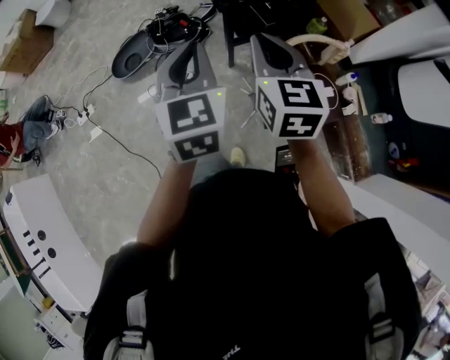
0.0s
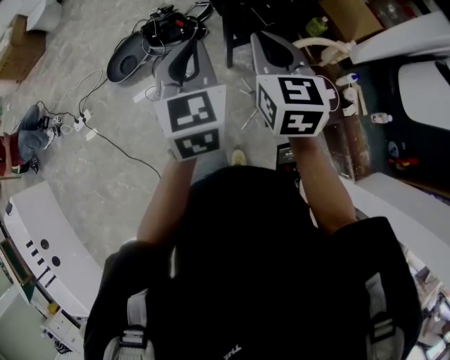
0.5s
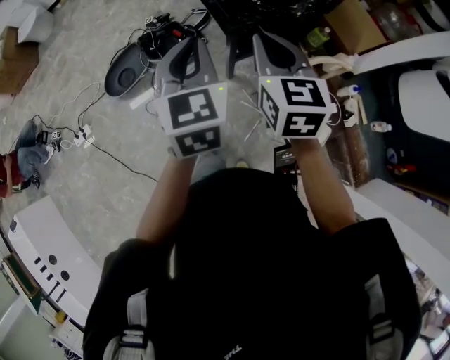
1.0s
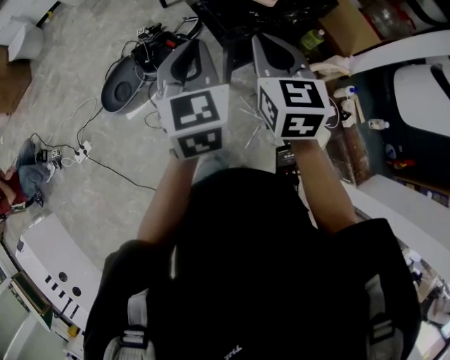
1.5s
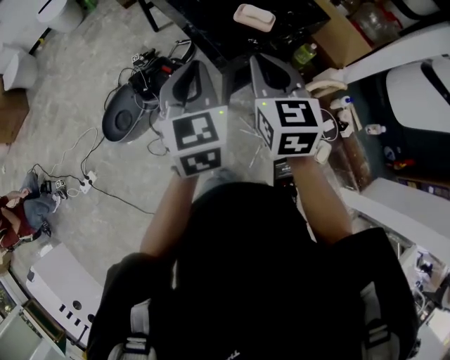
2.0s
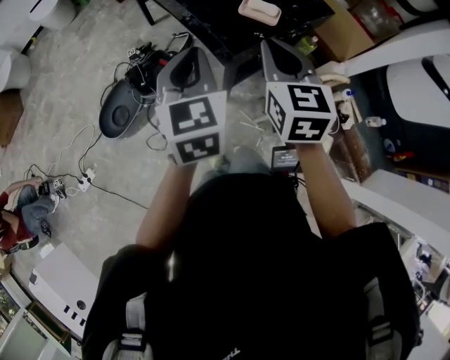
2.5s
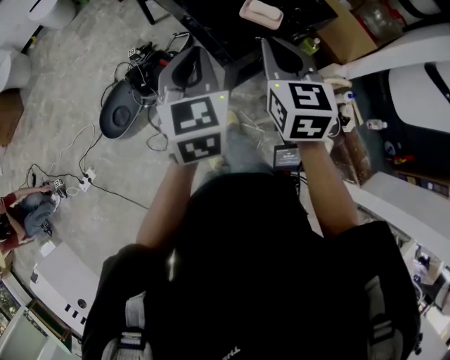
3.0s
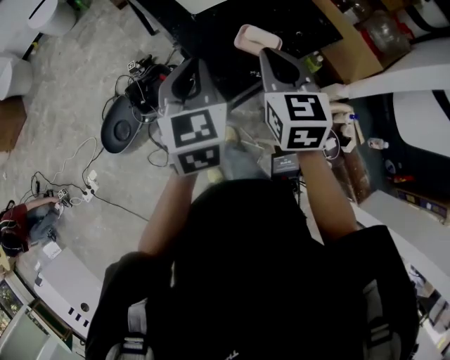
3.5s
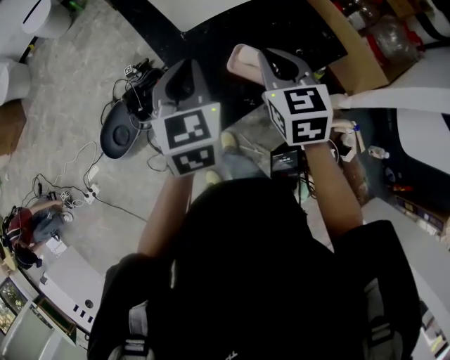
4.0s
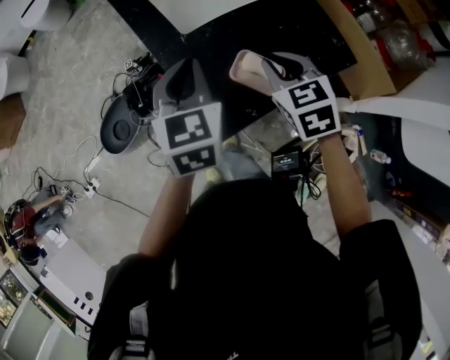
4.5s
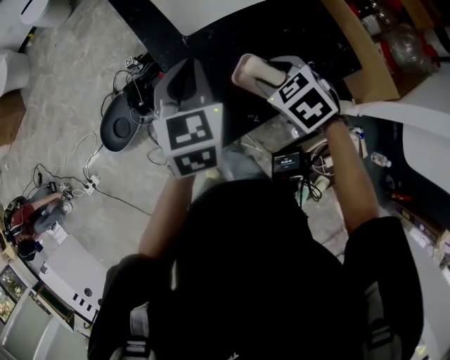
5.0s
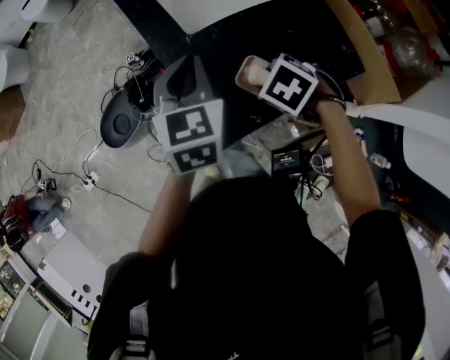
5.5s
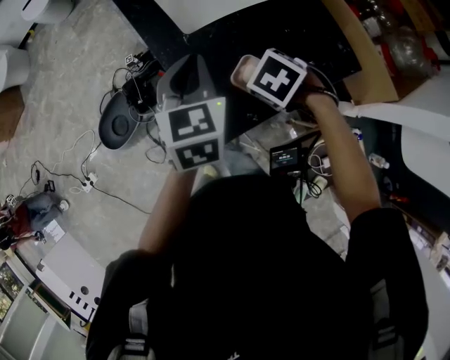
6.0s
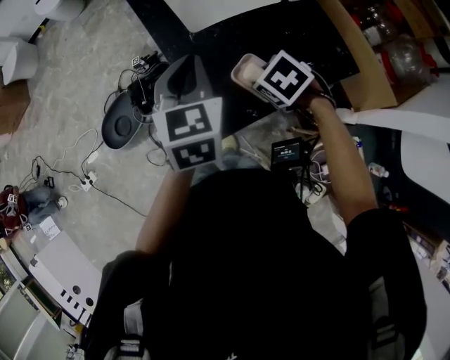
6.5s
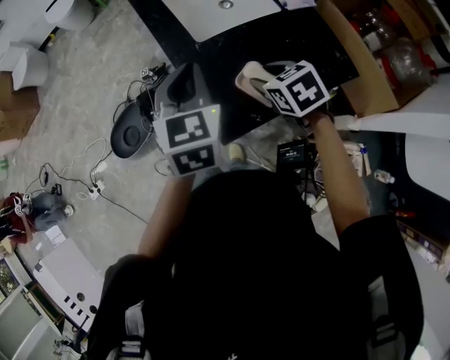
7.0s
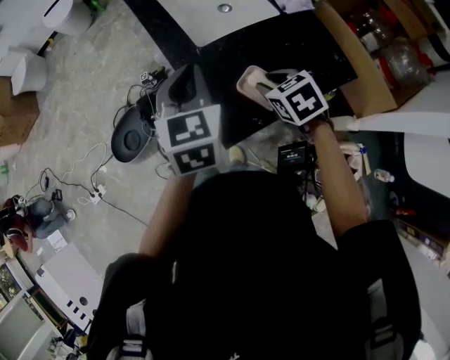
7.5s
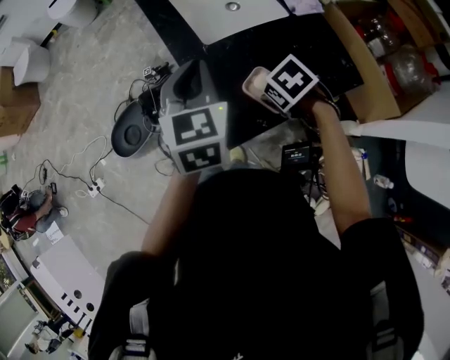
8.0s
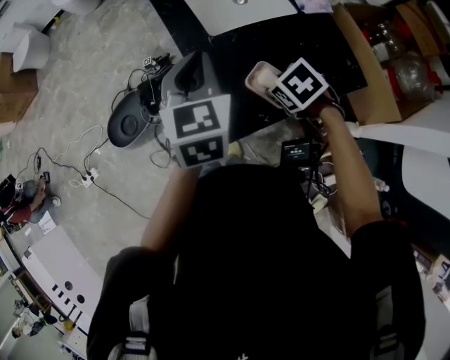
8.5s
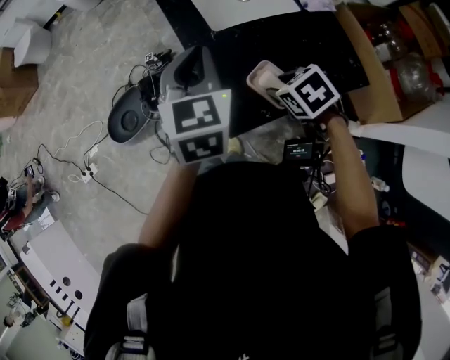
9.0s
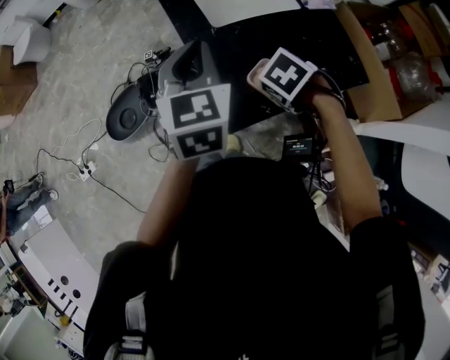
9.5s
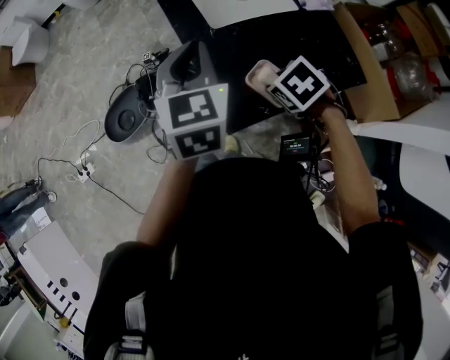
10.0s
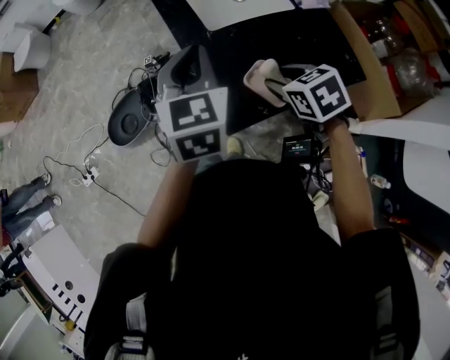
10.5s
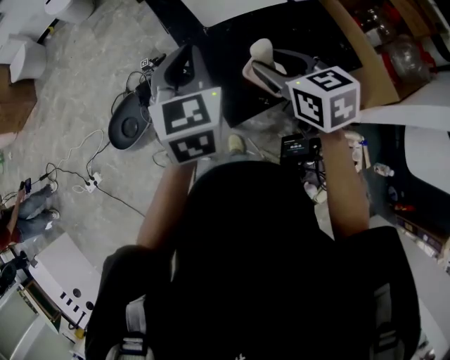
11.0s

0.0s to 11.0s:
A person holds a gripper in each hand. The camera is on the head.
0.0s to 2.0s: Both grippers travel together forward, roughly 30 cm.
2.0s to 3.5s: The two grippers go roughly 15 cm forward.
3.5s to 5.5s: The right gripper travels downward by some 20 cm, tips its fingers downward by roughly 60 degrees, and opens. Meanwhile the left gripper changes place by approximately 20 cm.
5.5s to 7.5s: The right gripper rotates roughly 30 degrees. Meanwhile the left gripper changes place by about 5 cm.
9.0s to 11.0s: The right gripper shifts some 10 cm upward, and points its fingers roughly 30 degrees further upward.

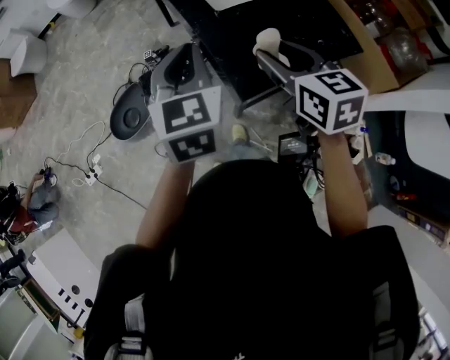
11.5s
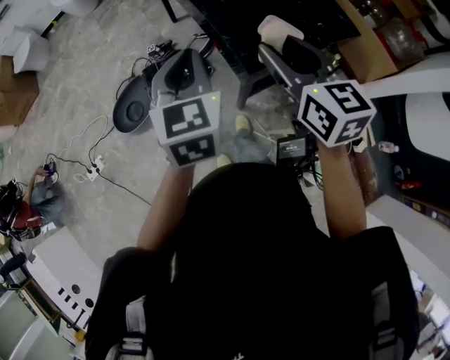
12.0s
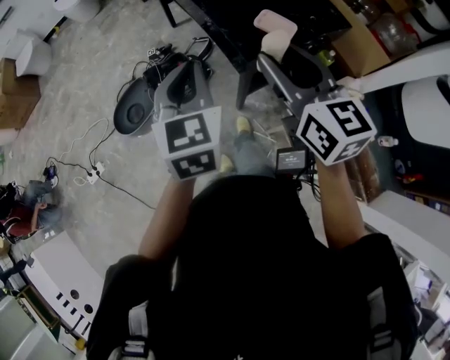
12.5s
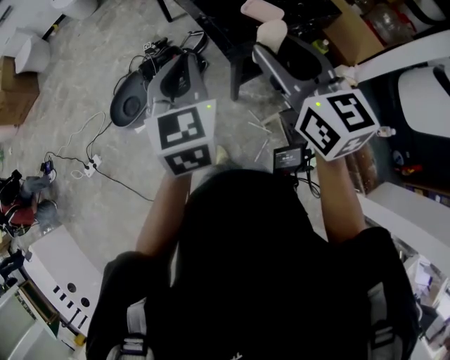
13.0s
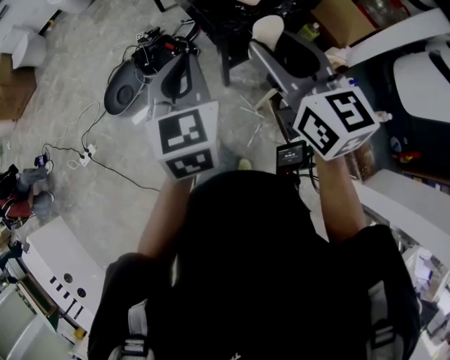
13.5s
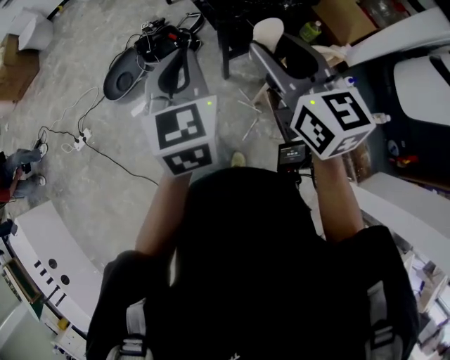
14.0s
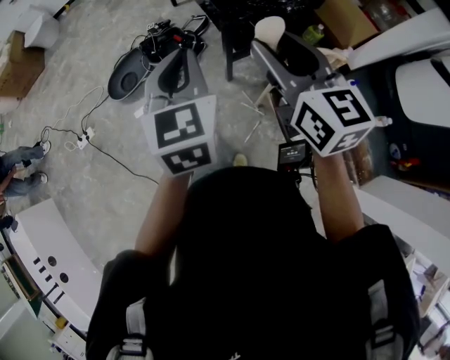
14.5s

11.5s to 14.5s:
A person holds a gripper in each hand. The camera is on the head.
11.5s to 13.0s: Both grippers move backward, some 25 cm.
13.0s to 14.5s: The two grippers go approximately 15 cm backward.

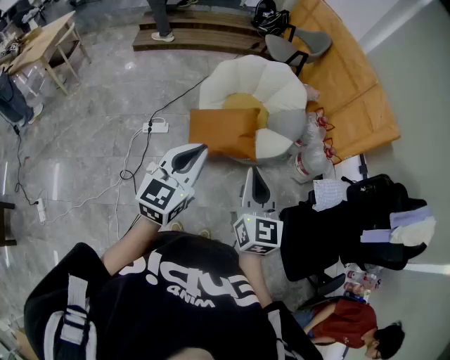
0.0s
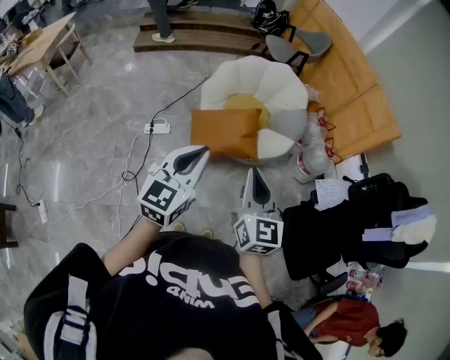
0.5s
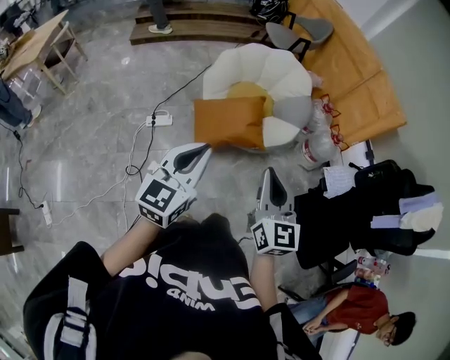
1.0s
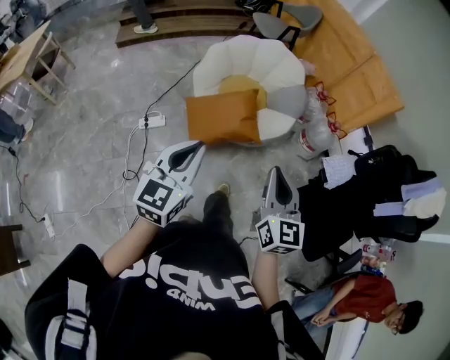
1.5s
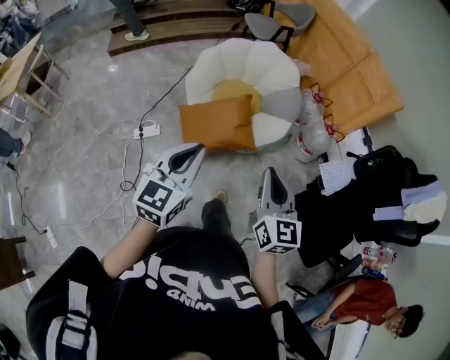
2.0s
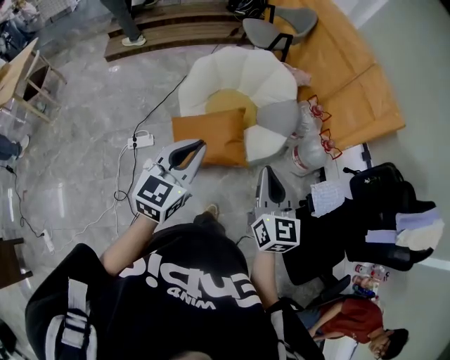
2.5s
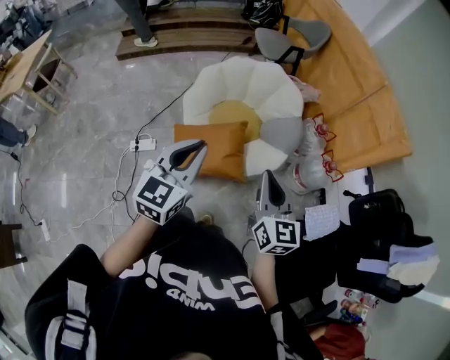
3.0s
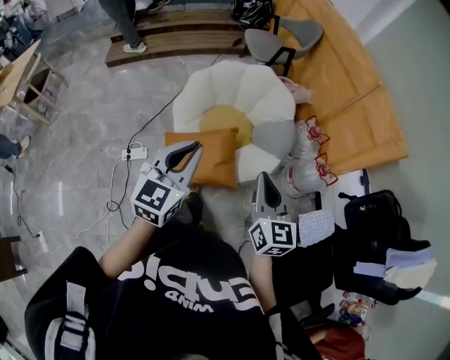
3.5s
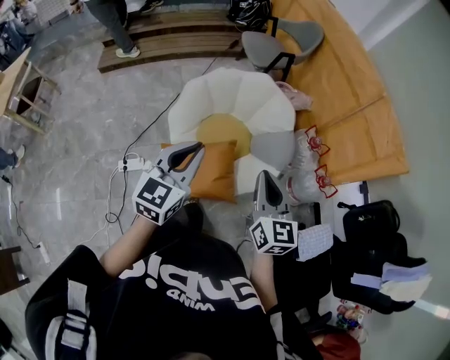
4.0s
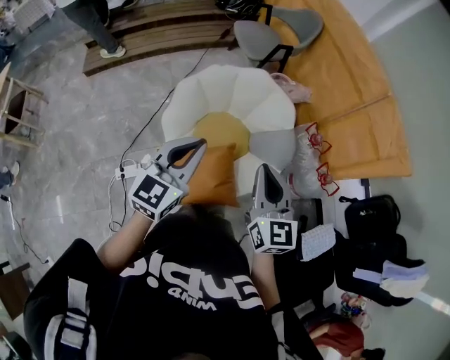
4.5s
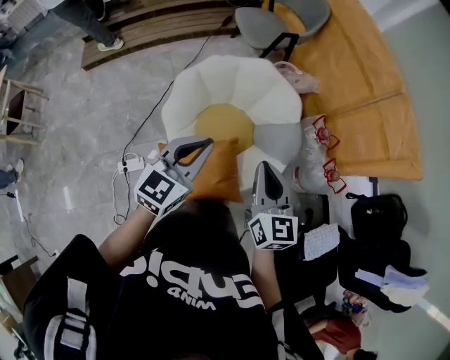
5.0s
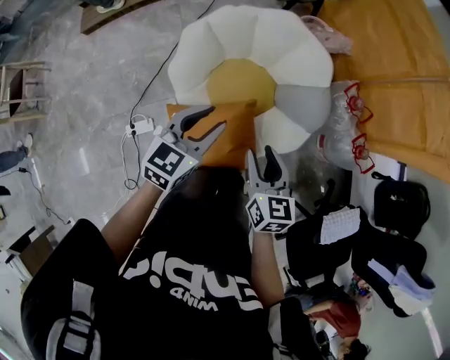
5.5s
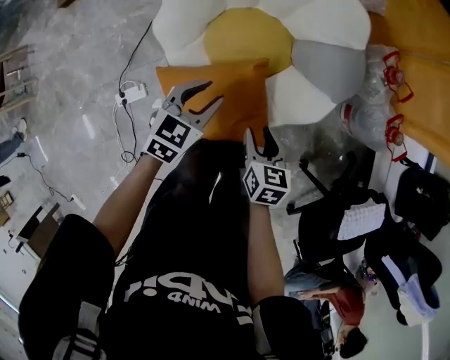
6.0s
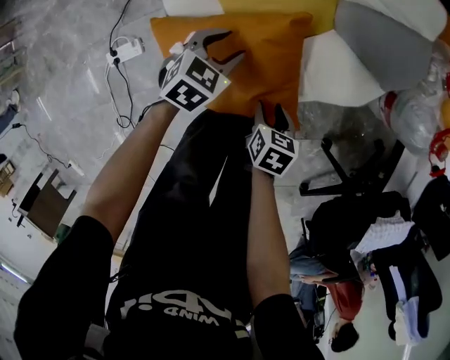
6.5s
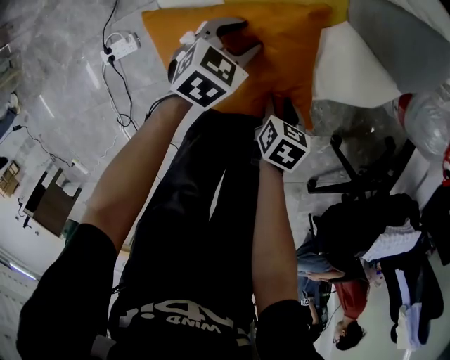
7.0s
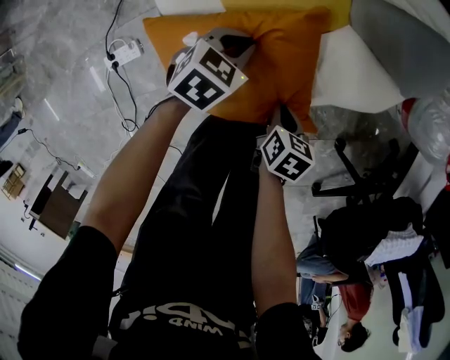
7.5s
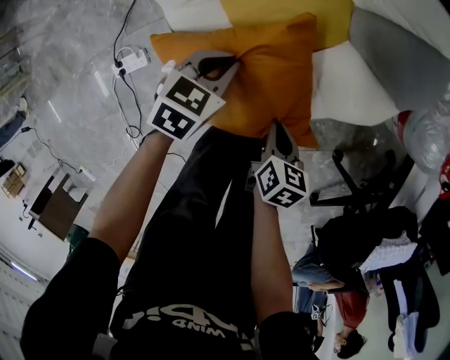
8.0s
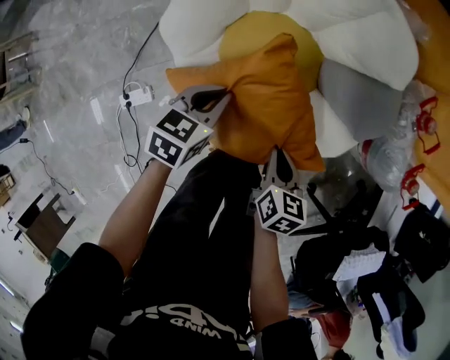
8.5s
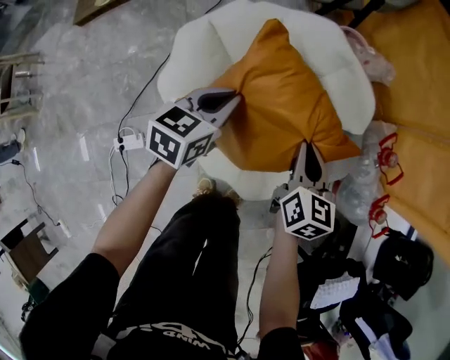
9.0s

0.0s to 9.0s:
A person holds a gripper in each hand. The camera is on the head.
0.0s to 2.0s: Both grippers travel together forward, approximately 5 cm.
2.0s to 4.5s: Both grippers are carried forward, about 50 cm.
4.5s to 7.0s: The grippers both shift downward by approximately 70 cm. The right gripper tips its fingers downward by about 60 degrees, and opens its fingers, while the left gripper angles its fingers downward, by roughly 50 degrees, and opens its fingers.
7.0s to 9.0s: Both grippers travel together upward and forward, approximately 40 cm. The right gripper angles its fingers upward, by about 40 degrees, and closes its fingers. Meanwhile the left gripper changes its angle by about 30 degrees, and closes its fingers.

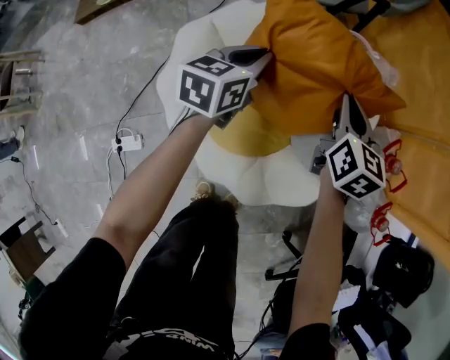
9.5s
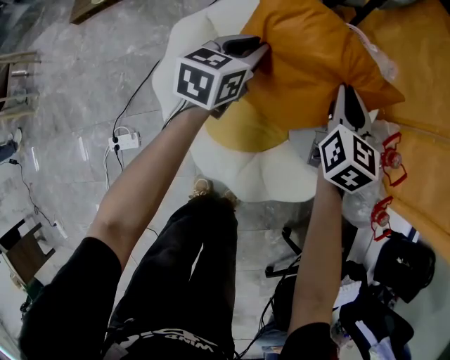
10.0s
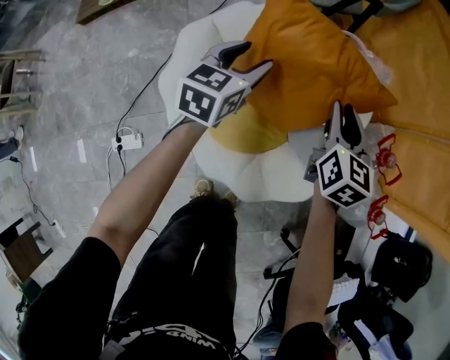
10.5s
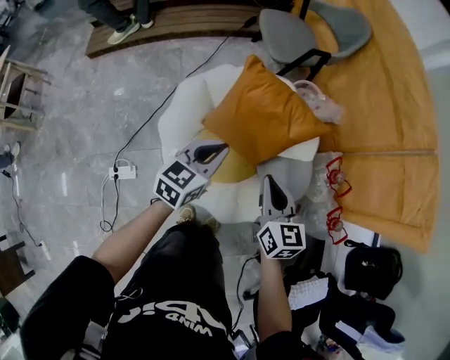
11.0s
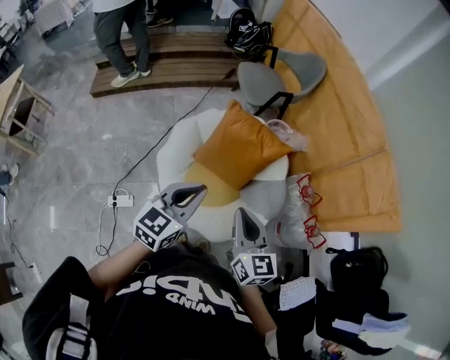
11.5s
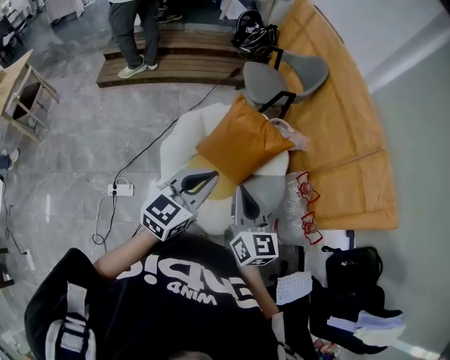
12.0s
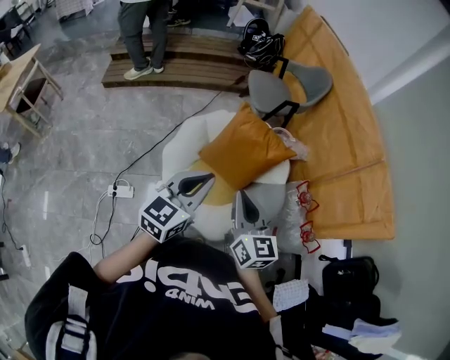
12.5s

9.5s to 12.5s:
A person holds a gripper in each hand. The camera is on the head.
9.5s to 11.0s: Both grippers move backward and upward, roughly 25 cm. The right gripper opens, then closes once more. Meanwhile the left gripper opens and closes again.
11.0s to 12.5s: The grippers both shift upward and backward by some 30 cm.
